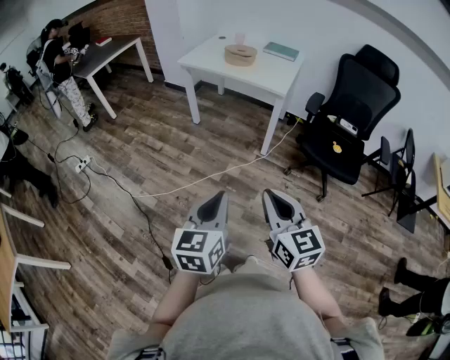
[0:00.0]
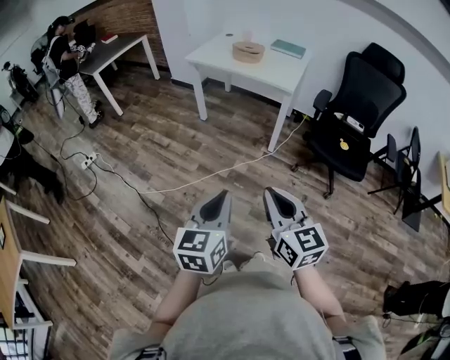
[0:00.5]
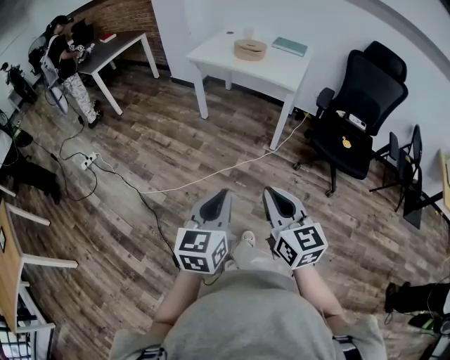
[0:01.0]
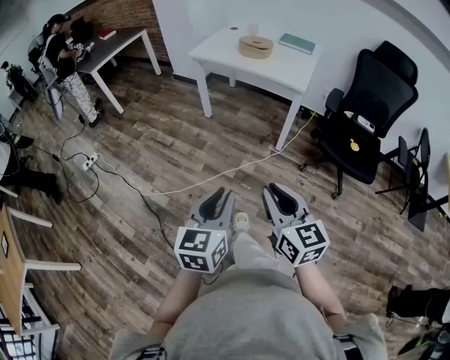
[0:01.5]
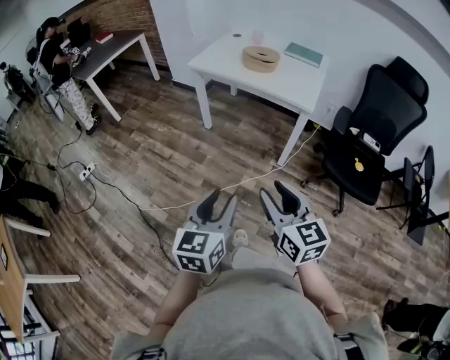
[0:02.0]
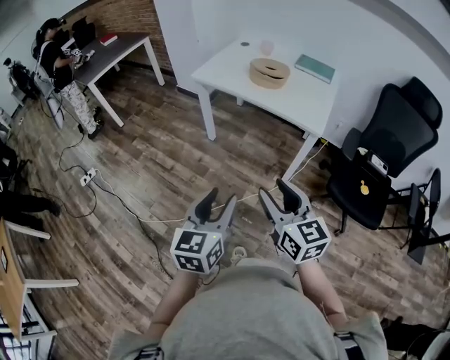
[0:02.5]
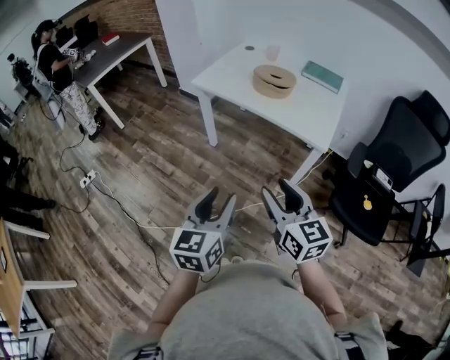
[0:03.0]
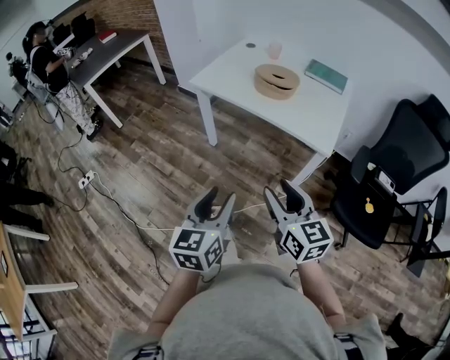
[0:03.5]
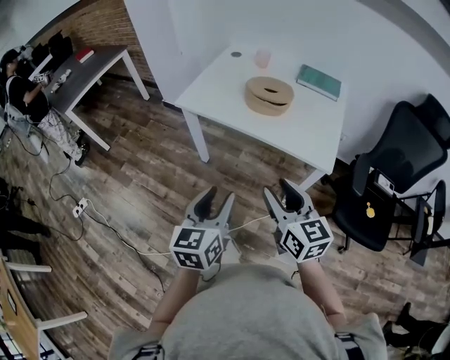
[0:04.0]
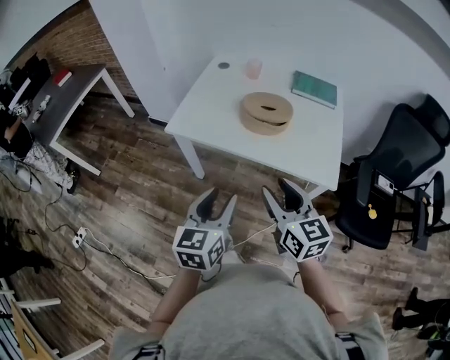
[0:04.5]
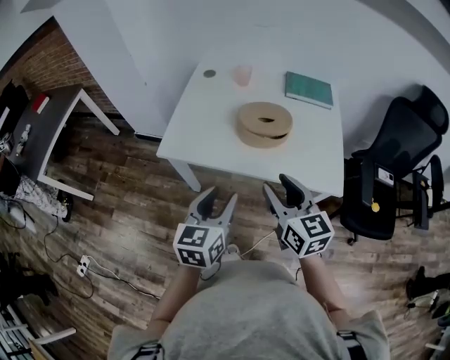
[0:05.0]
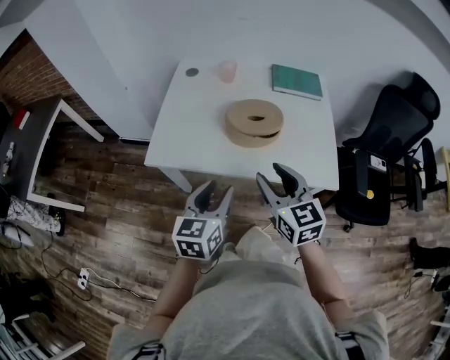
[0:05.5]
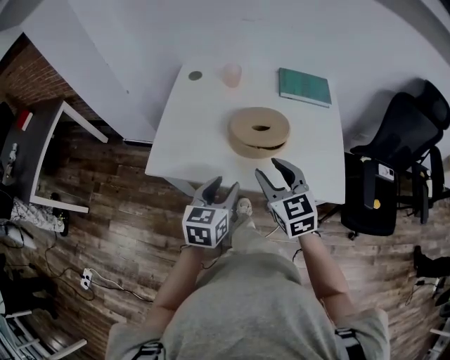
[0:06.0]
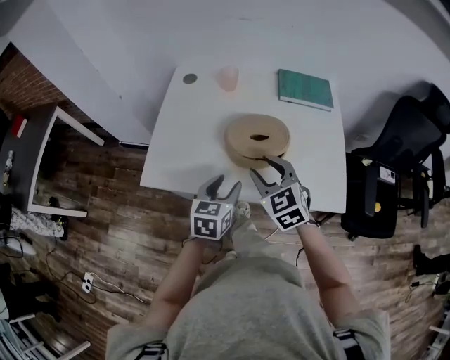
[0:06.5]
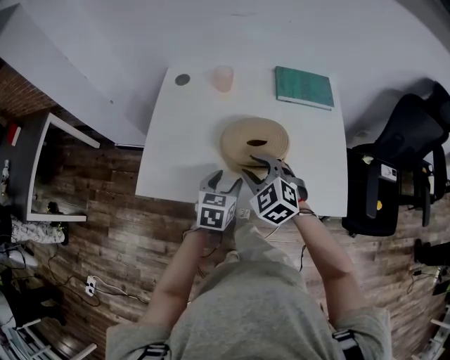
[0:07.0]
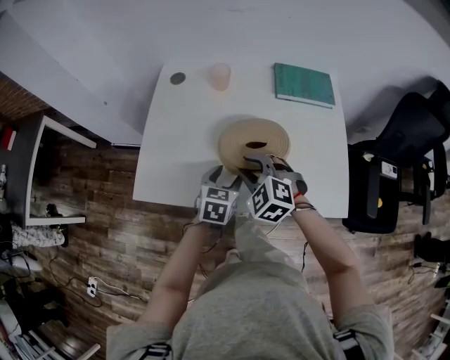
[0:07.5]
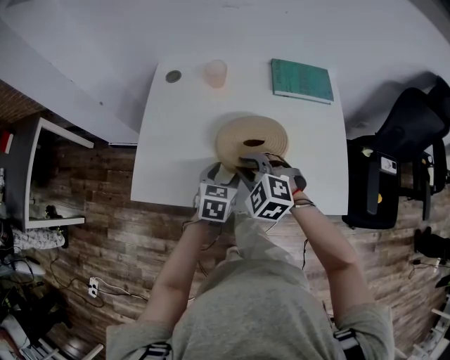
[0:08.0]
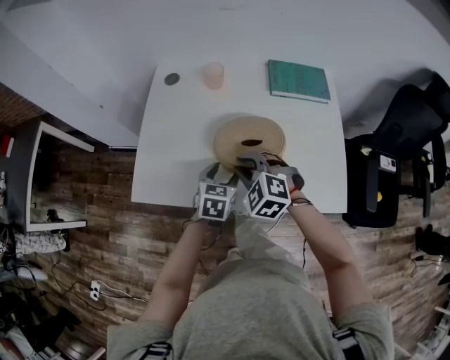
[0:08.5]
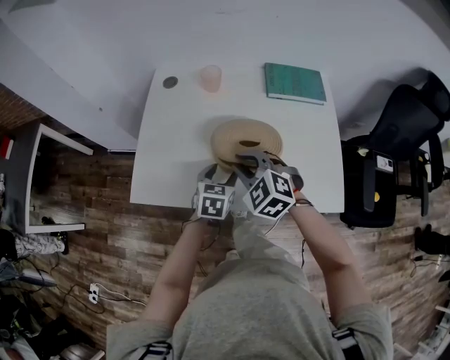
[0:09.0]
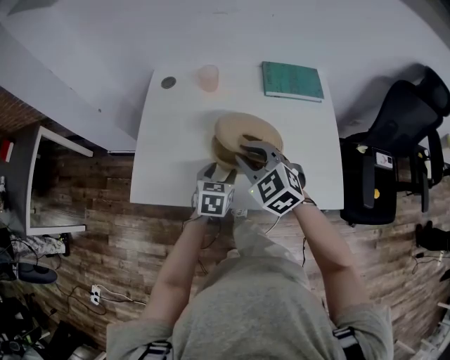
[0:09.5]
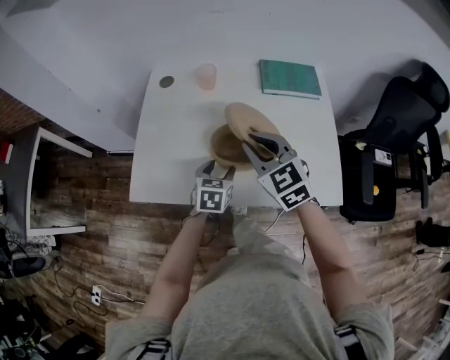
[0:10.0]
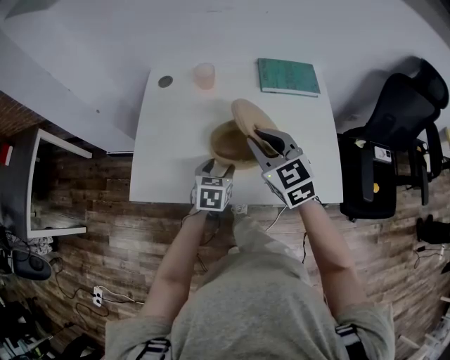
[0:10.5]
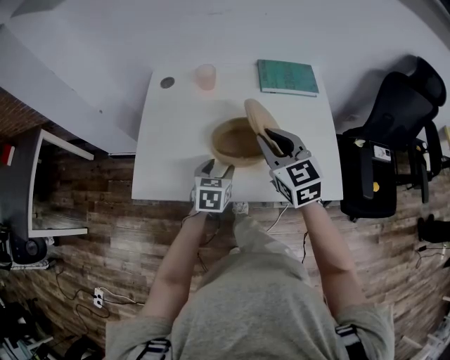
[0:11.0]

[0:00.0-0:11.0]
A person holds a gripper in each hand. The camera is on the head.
0:00.0 to 0:02.0: The grippers both shift forward by about 20 cm. The left gripper opens, while the right gripper opens up.
0:02.0 to 0:03.5: Both grippers travel together forward, about 25 cm.
0:03.5 to 0:05.5: The right gripper changes place by about 40 cm, and rotates about 20 degrees. The left gripper shifts by roughly 40 cm, and rotates roughly 30 degrees.
0:05.5 to 0:07.5: Both grippers travel together forward and downward, roughly 25 cm. The left gripper turns by approximately 20 degrees, while the right gripper twists approximately 40 degrees counterclockwise, seen from behind.
0:07.5 to 0:09.0: The grippers make only small movements.
0:09.0 to 0:11.0: The right gripper heads to the right and upward, covering approximately 10 cm, and turns by about 40 degrees.

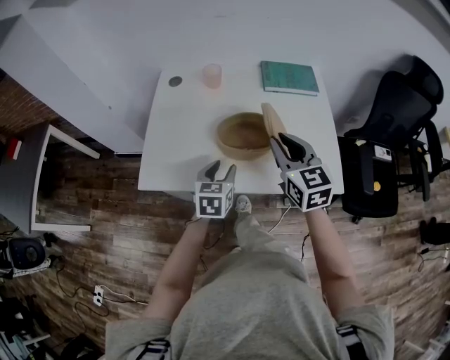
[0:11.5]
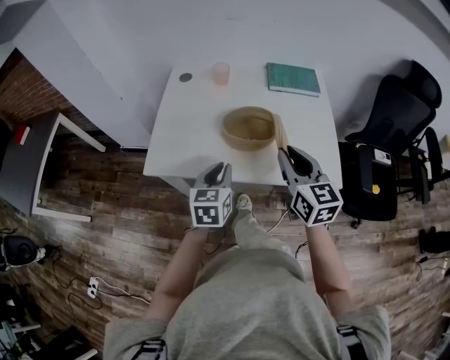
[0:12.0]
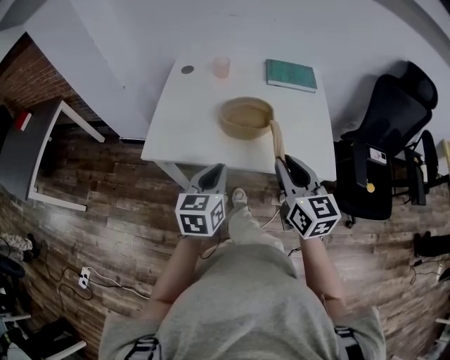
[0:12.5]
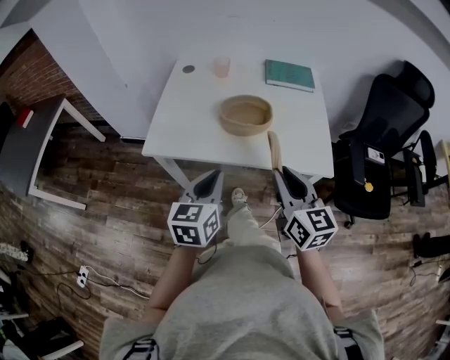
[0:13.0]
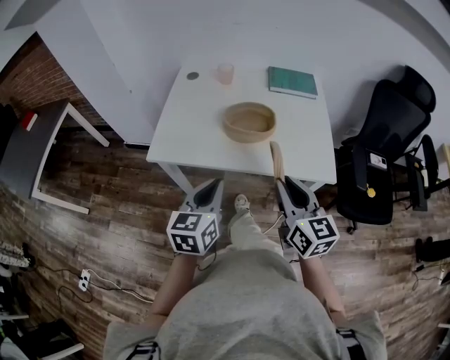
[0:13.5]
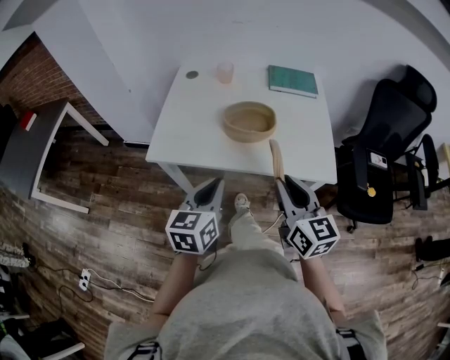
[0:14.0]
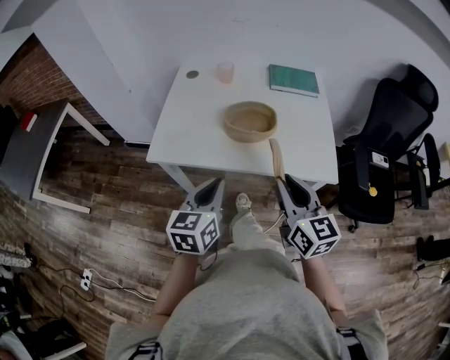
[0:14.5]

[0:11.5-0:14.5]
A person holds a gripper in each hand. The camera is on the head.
0:11.5 to 0:13.0: The right gripper heads backward, covering approximately 20 cm. The left gripper travels backward and upward by about 20 cm, and closes.
0:13.0 to 0:14.5: Neither gripper changes place.

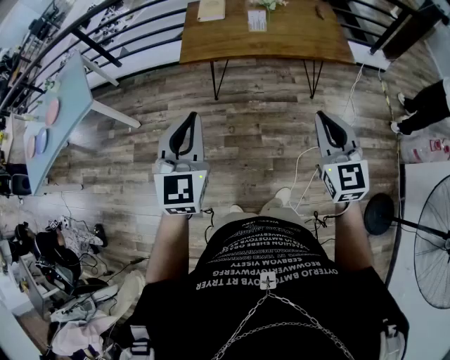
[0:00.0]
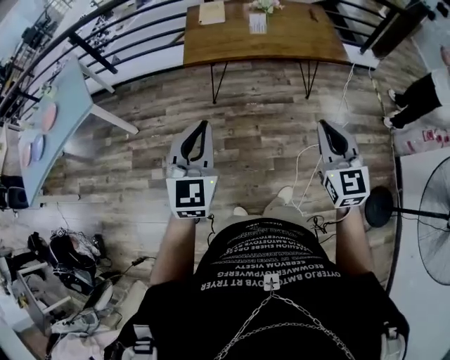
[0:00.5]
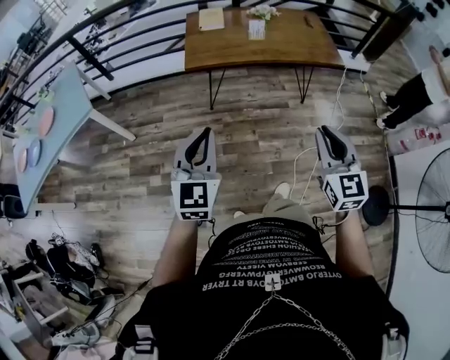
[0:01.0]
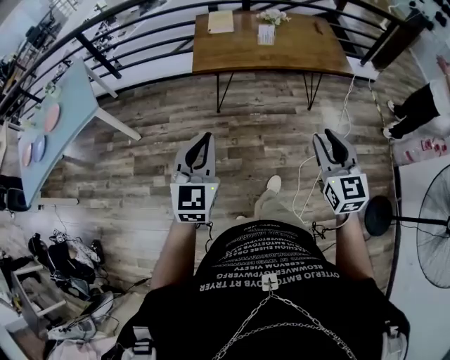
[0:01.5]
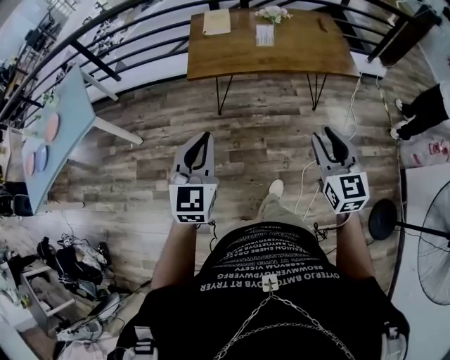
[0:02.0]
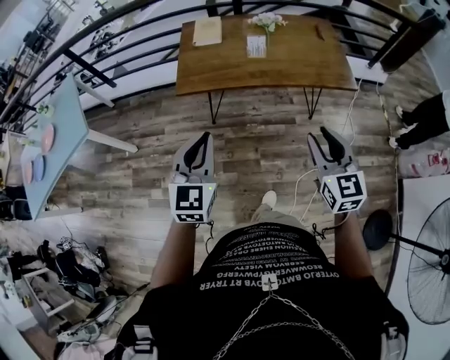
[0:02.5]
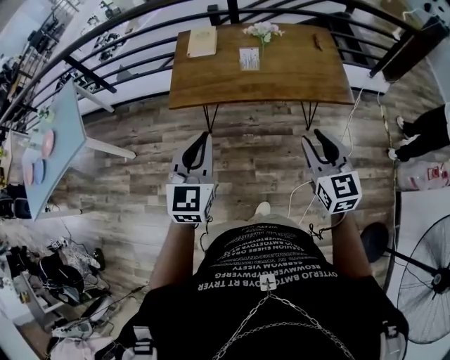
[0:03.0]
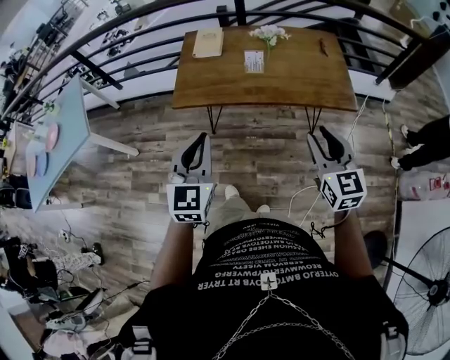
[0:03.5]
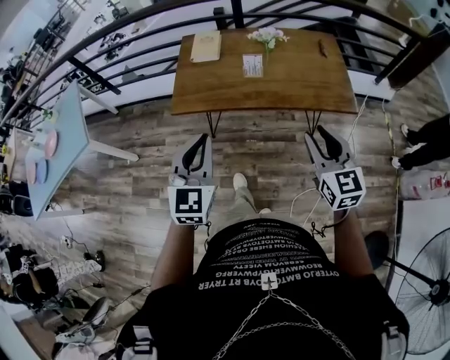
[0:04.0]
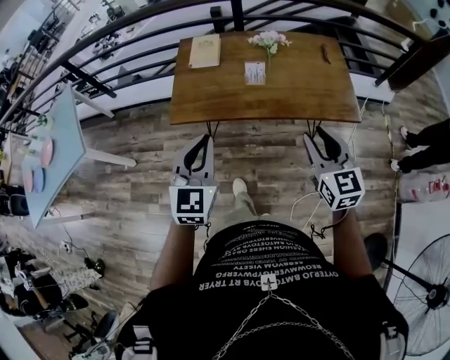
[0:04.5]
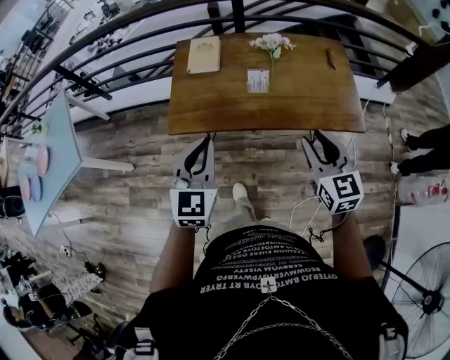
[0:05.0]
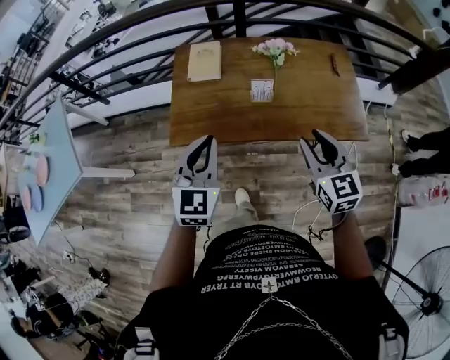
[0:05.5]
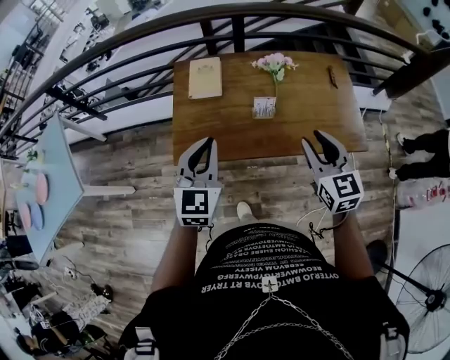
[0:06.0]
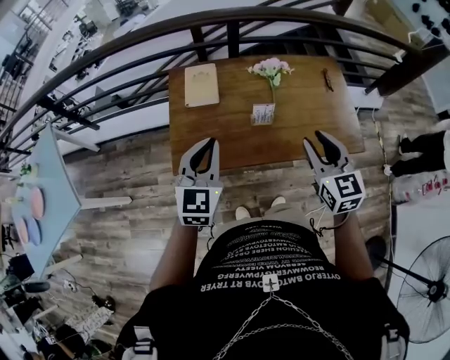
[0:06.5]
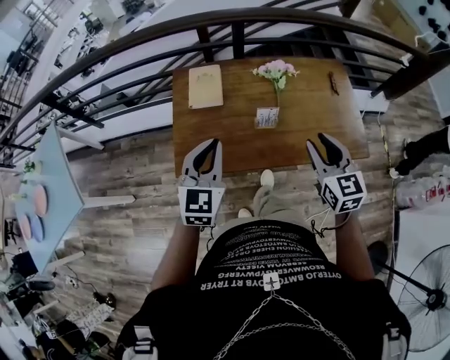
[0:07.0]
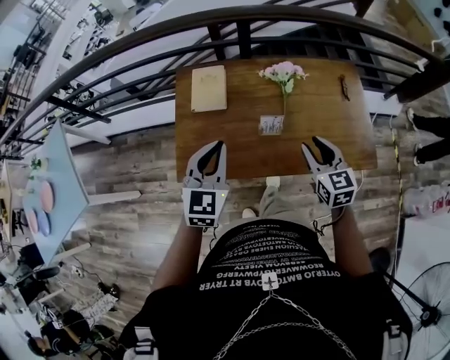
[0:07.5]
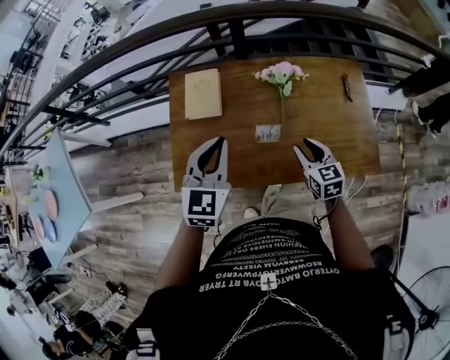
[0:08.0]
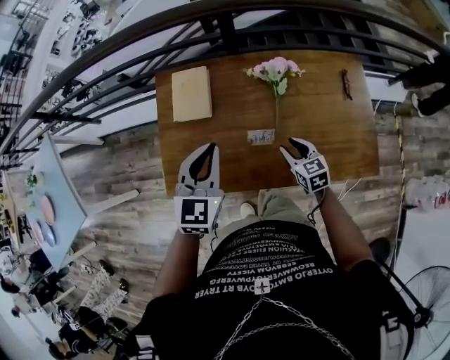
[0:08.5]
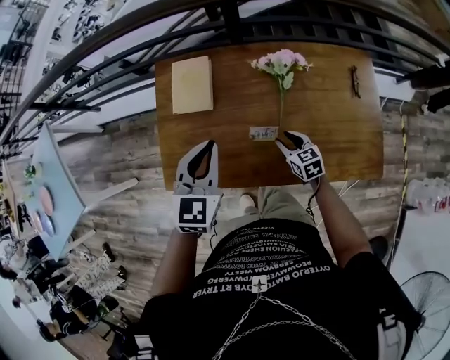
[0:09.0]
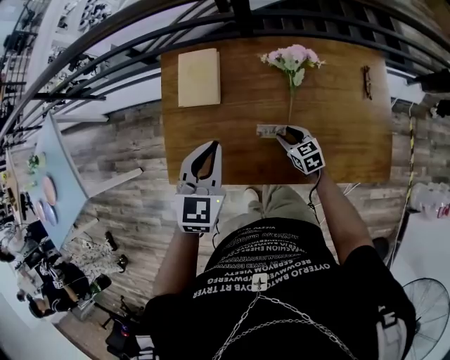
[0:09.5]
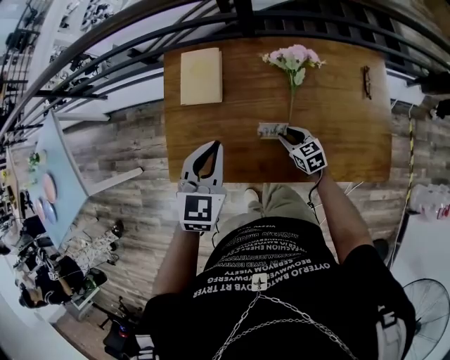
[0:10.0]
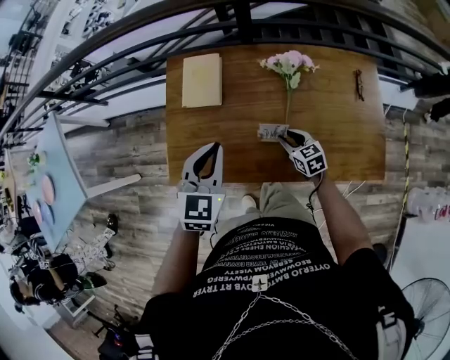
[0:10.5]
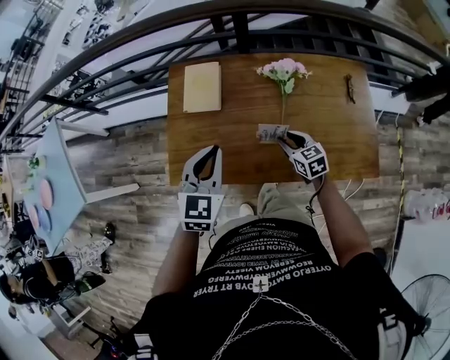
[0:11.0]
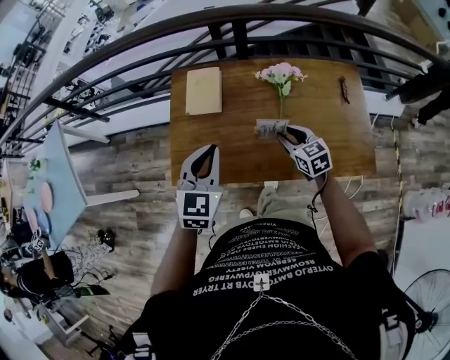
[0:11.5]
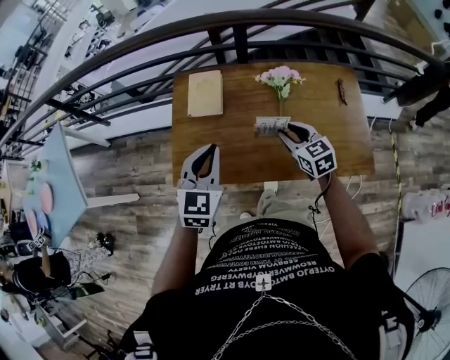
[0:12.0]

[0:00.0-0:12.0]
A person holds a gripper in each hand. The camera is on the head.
0:00.0 to 0:02.0: The right gripper goes backward and returns, some 10 cm each way, and opens. The left gripper travels downward by some 5 cm, and goes backward and returns, roughly 10 cm each way.
0:02.0 to 0:04.0: The two grippers go about 25 cm forward and to the right.
0:04.0 to 0:06.0: Both grippers travel together forward, roughly 25 cm.
0:06.0 to 0:08.0: The left gripper goes roughly 15 cm forward, while the right gripper heads downward and forward, covering approximately 25 cm.
0:08.0 to 0:10.0: The right gripper goes some 20 cm downward, and changes its angle by roughly 20 degrees, while the left gripper travels downward by roughly 5 cm.
0:10.0 to 0:12.0: The right gripper moves upward, approximately 20 cm; the left gripper moves backward and upward, roughly 10 cm.

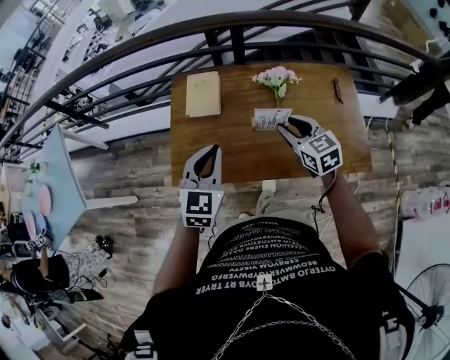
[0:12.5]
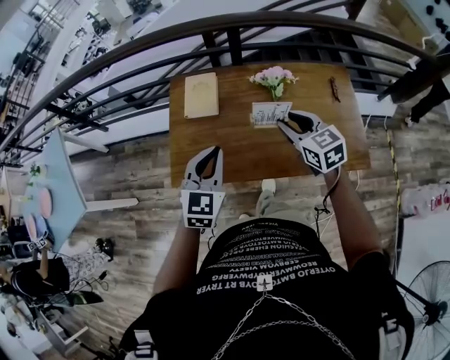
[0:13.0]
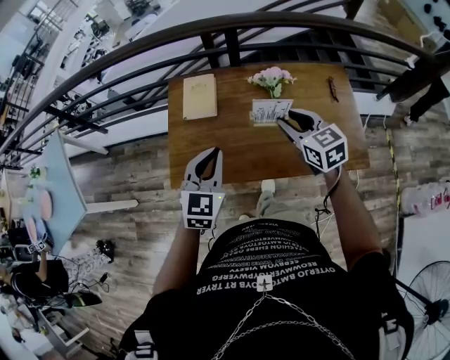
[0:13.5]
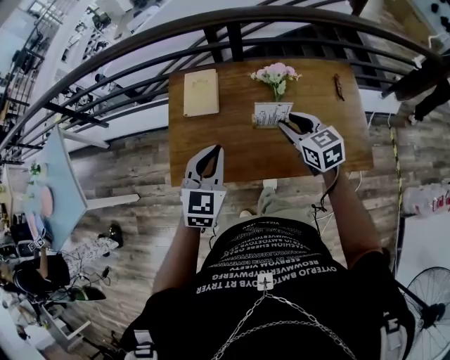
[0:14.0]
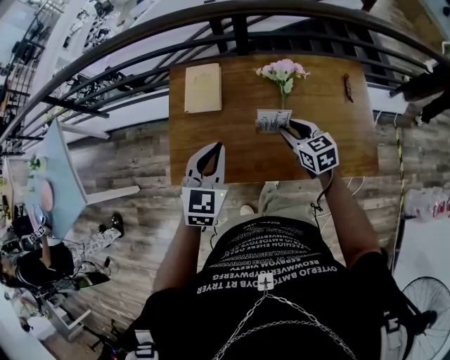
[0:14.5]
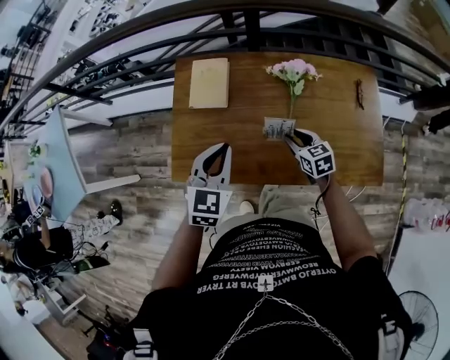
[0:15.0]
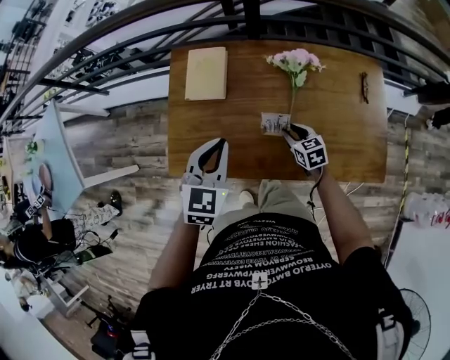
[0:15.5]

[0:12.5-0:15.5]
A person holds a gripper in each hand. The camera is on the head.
0:12.5 to 0:14.0: There are only small adjustments of the grippers.
0:14.0 to 0:15.5: The right gripper travels downward by about 25 cm, while the left gripper shifts roughly 10 cm forward and downward.
